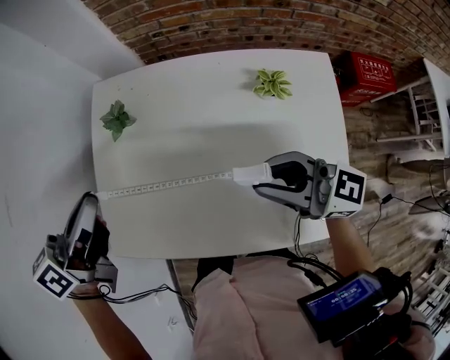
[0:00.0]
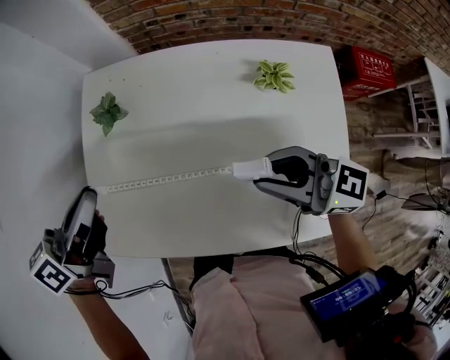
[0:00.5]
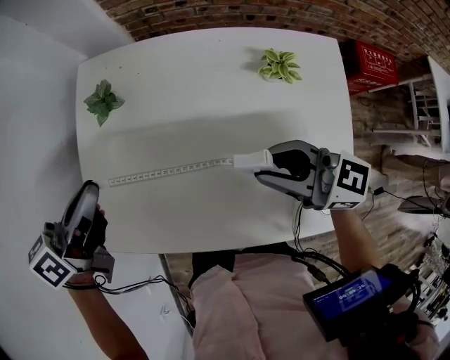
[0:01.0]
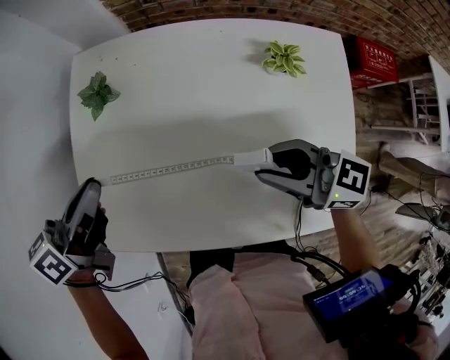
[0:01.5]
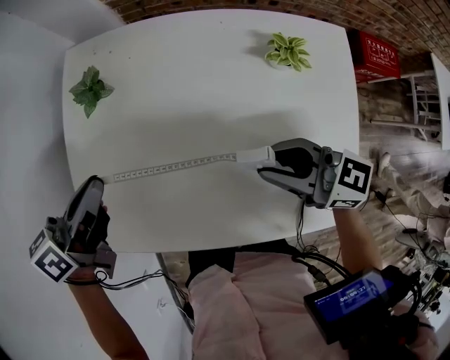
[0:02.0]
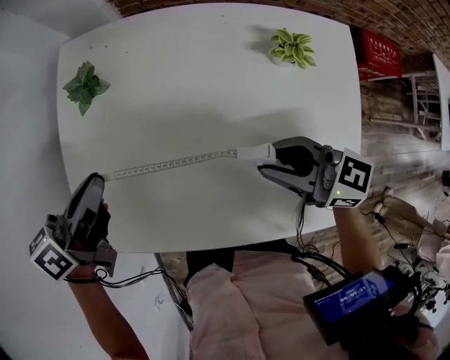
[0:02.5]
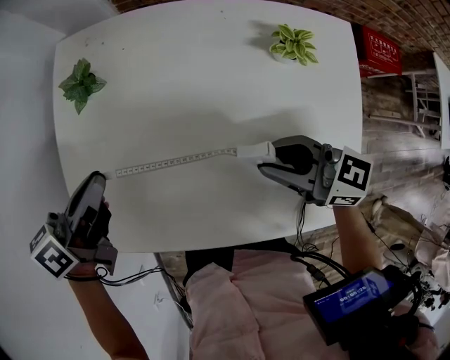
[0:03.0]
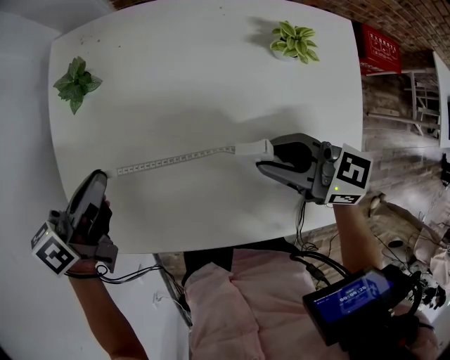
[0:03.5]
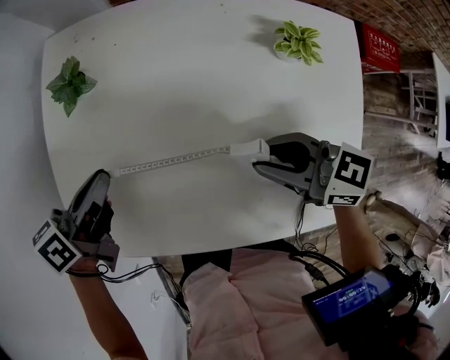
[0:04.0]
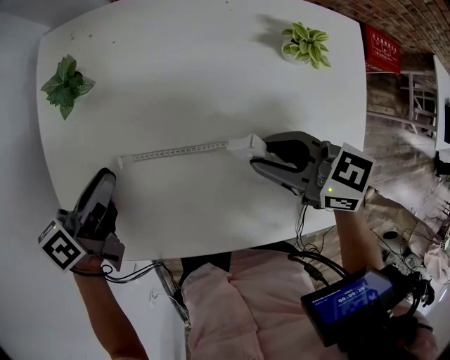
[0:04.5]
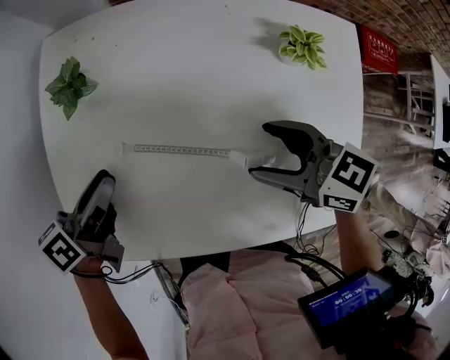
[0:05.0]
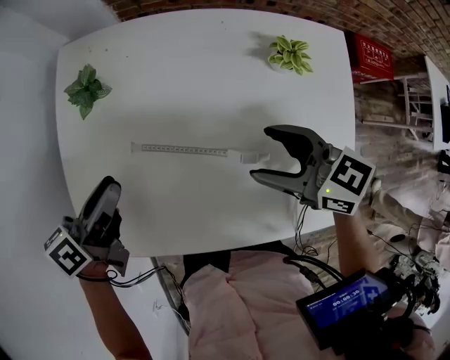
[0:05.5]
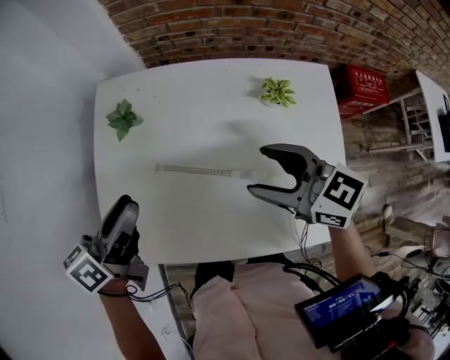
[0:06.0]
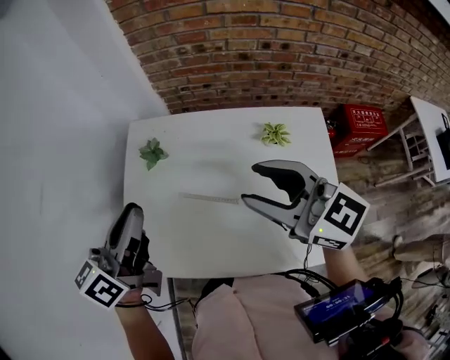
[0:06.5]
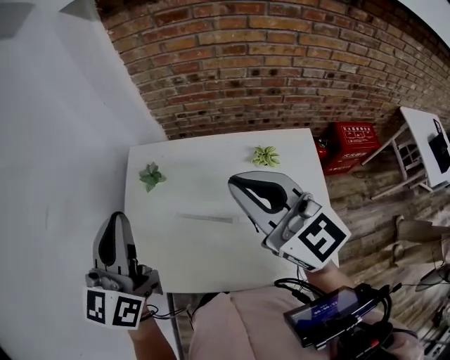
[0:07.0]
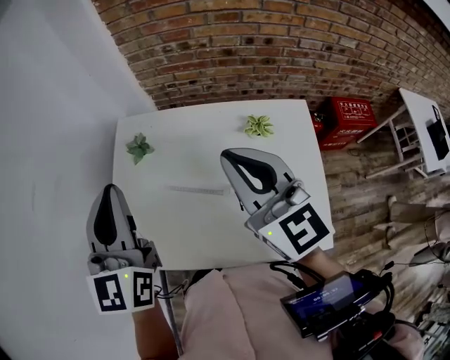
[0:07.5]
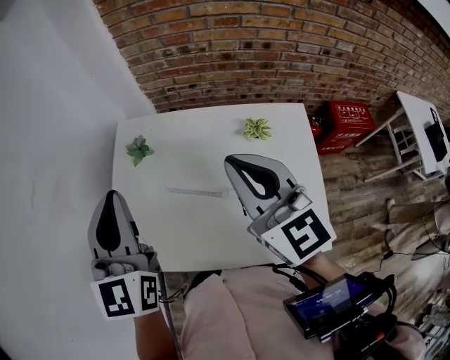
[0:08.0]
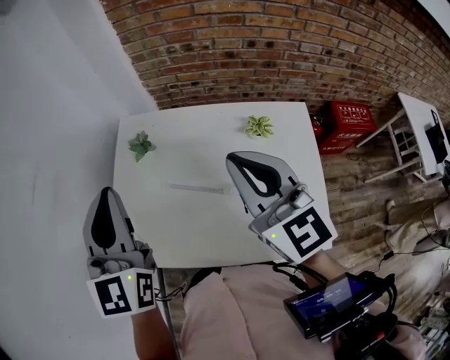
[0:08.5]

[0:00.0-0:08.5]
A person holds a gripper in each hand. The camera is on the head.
0:00.0 to 0:02.0: Both grippers travel together downward, roughly 10 cm.
0:02.0 to 0:04.0: The left gripper shifts about 5 cm downward.
0:04.0 to 0:06.5: The grippers both shift upward by about 25 cm. The left gripper turns by approximately 30 degrees, and opens, then closes once more. The right gripper rotates approximately 30 degrees, and opens, then closes once more.
0:06.5 to 0:08.5: The right gripper rotates some 20 degrees, and closes. Meanwhile the left gripper goes some 5 cm upward, and rotates around the line of its fingers by approximately 40 degrees, clockwise from behind.

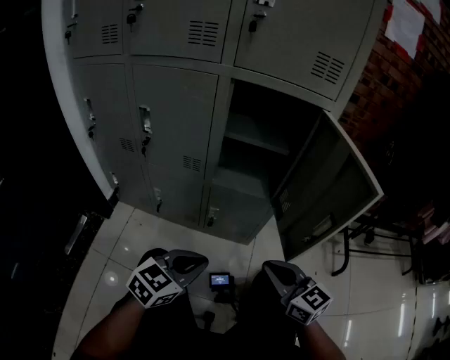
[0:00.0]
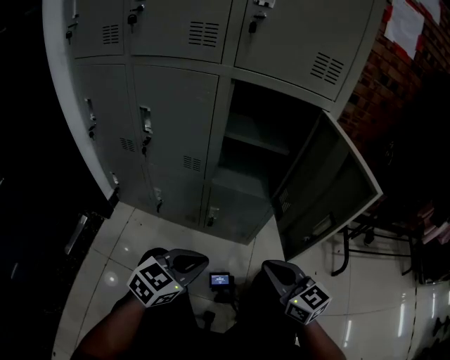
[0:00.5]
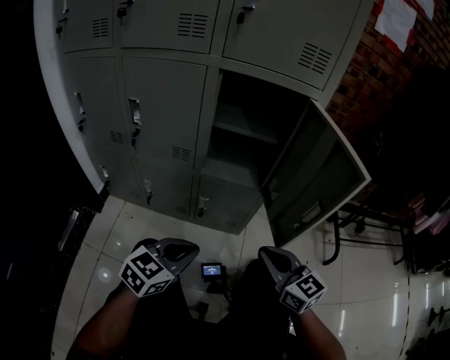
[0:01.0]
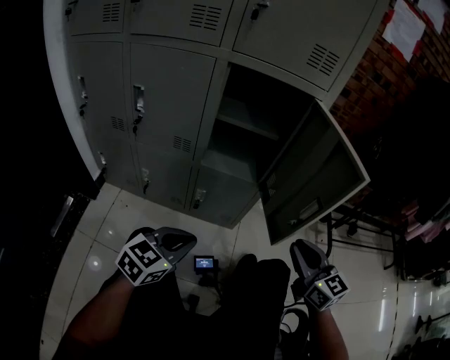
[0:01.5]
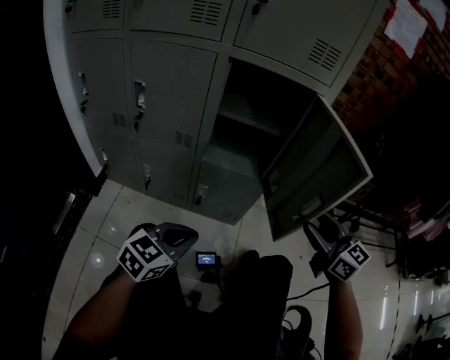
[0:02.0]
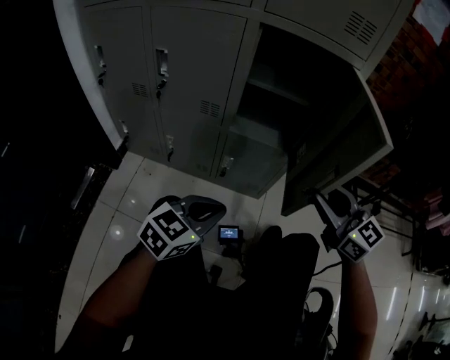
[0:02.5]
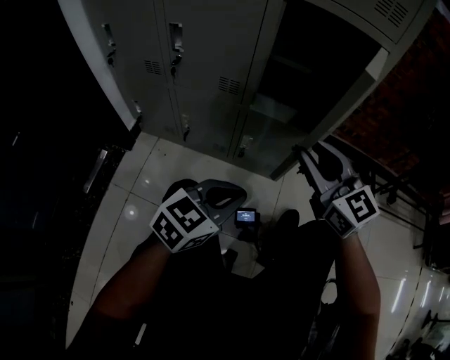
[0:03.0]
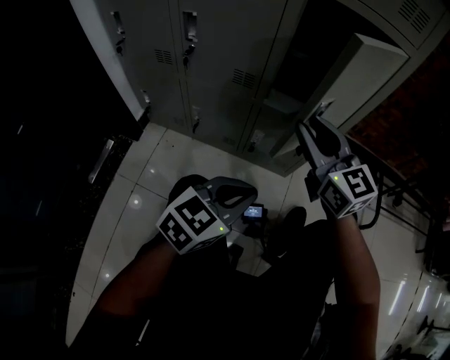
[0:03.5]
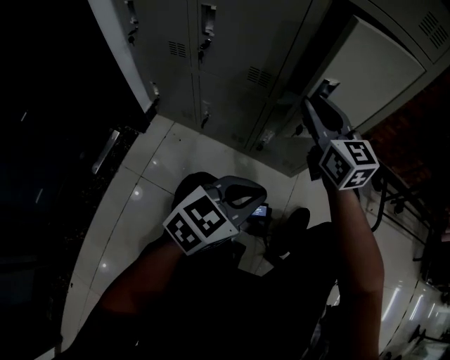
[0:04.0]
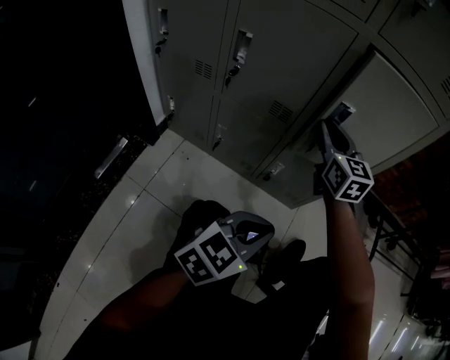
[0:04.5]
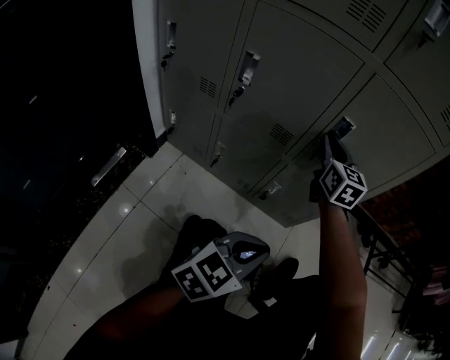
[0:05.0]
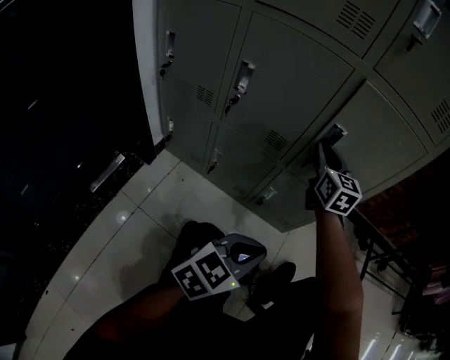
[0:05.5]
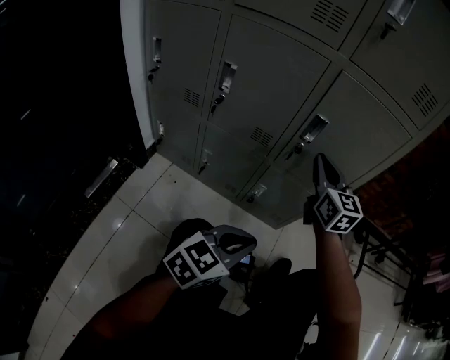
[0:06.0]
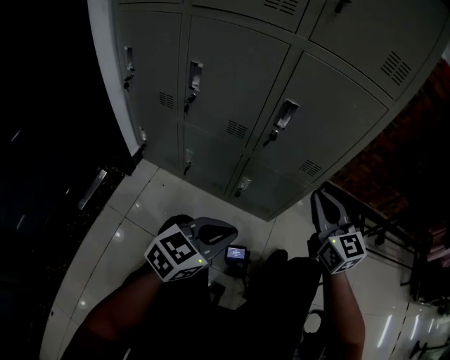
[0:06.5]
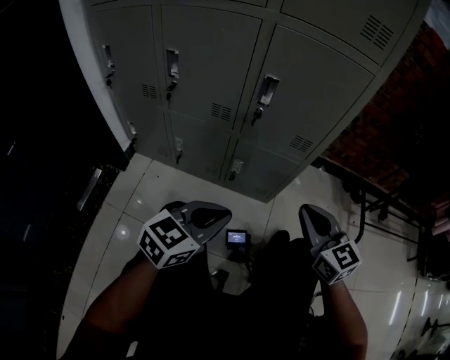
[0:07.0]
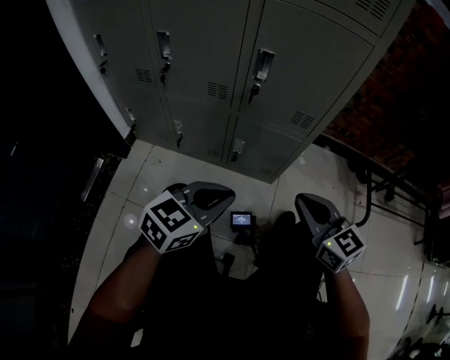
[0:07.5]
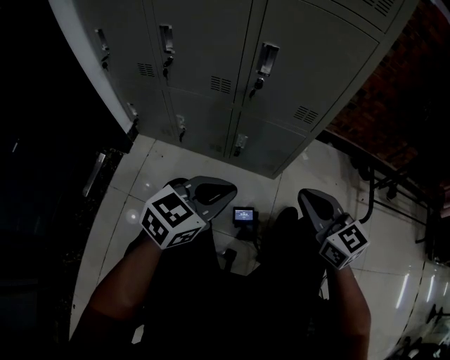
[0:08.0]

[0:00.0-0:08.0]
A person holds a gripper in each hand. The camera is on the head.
0:00.0 to 0:02.0: The right gripper goes roughly 15 cm to the right, upward and forward, and opens up.
0:02.0 to 0:04.0: The right gripper moves to the left and forward, roughly 30 cm, and closes.
0:04.0 to 0:06.0: The right gripper closes its fingers.
0:06.0 to 0:08.0: The right gripper shifts roughly 25 cm backward, to the right and downward, and swivels roughly 20 degrees.

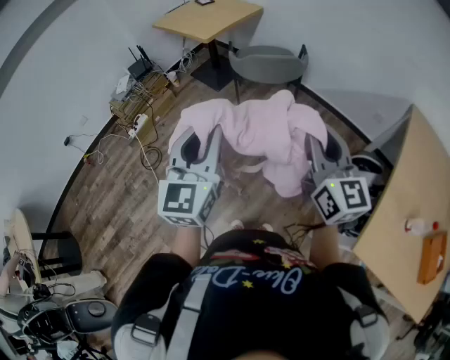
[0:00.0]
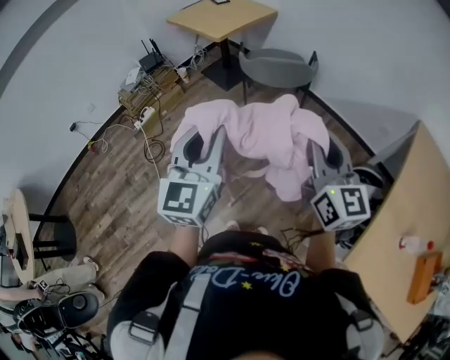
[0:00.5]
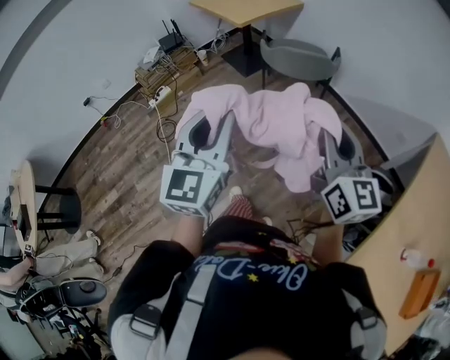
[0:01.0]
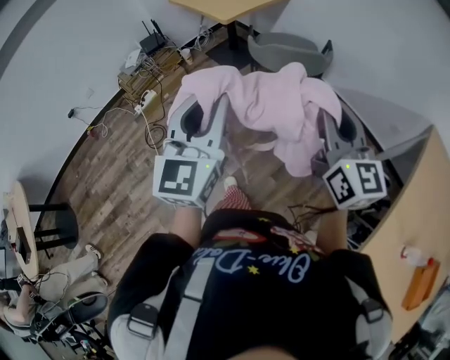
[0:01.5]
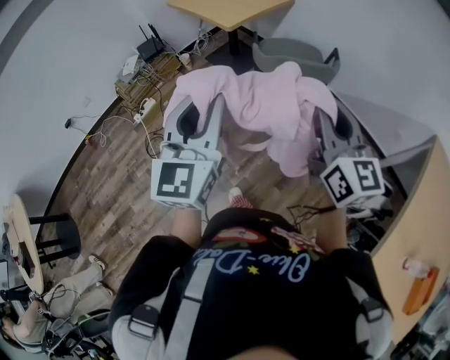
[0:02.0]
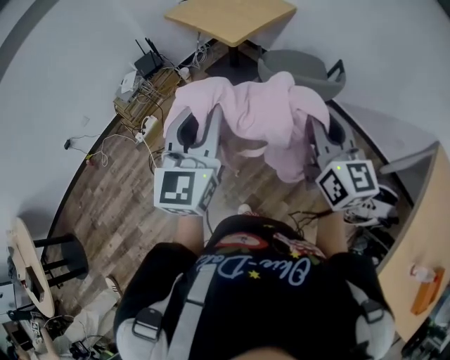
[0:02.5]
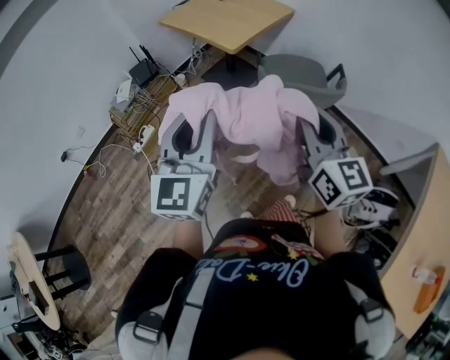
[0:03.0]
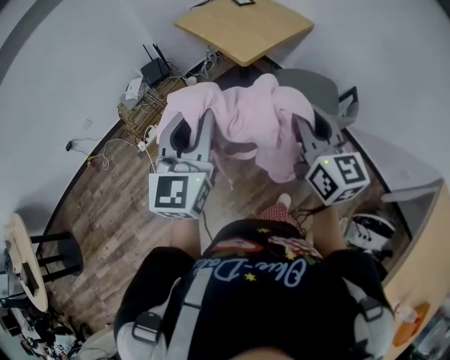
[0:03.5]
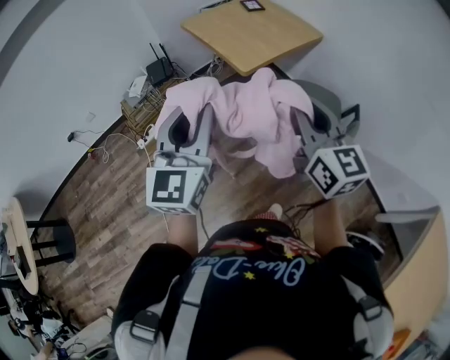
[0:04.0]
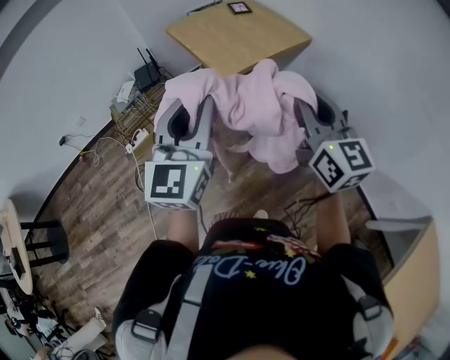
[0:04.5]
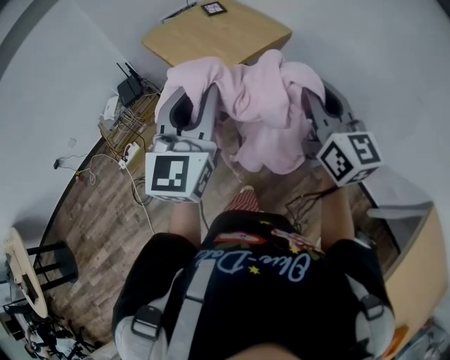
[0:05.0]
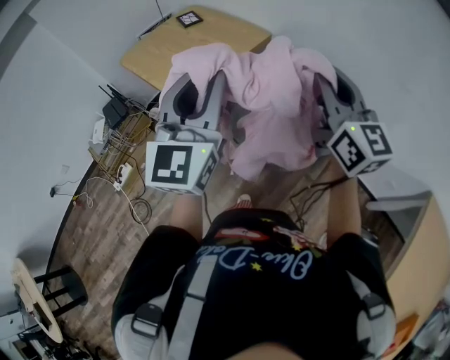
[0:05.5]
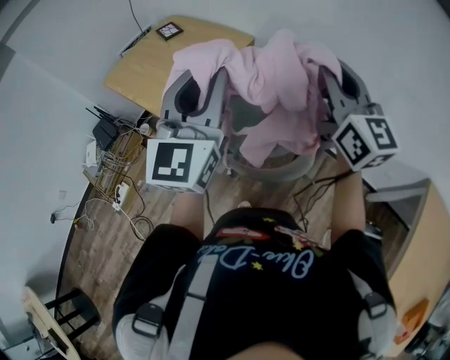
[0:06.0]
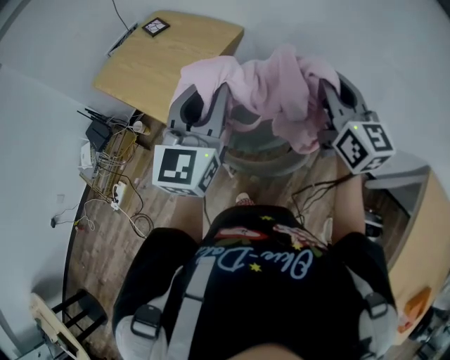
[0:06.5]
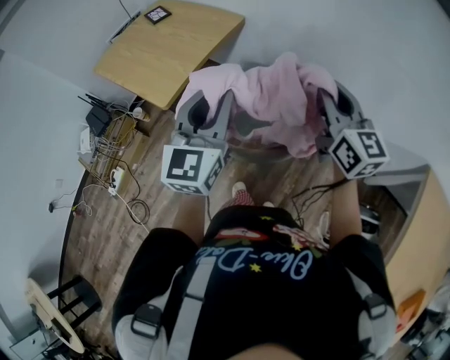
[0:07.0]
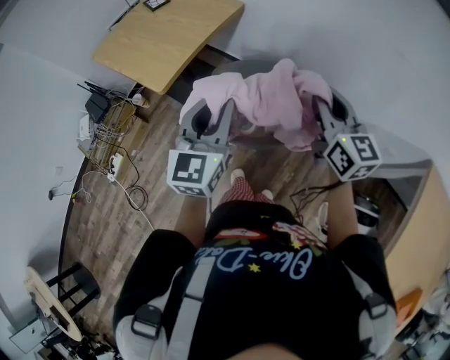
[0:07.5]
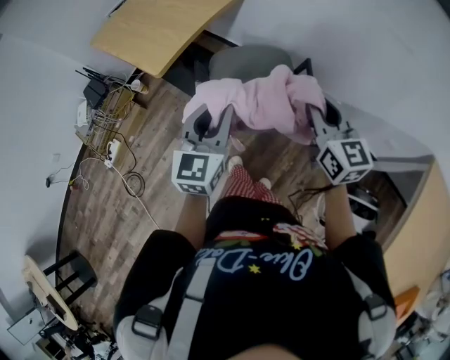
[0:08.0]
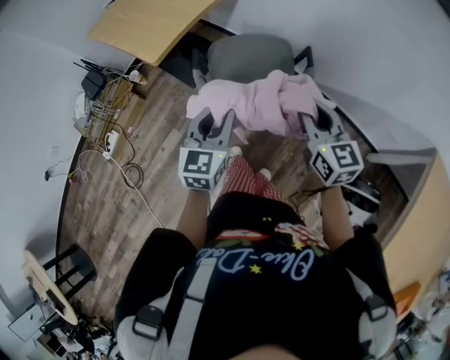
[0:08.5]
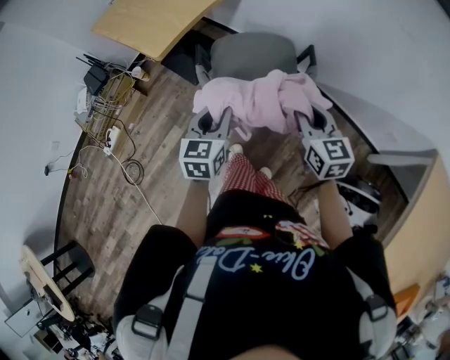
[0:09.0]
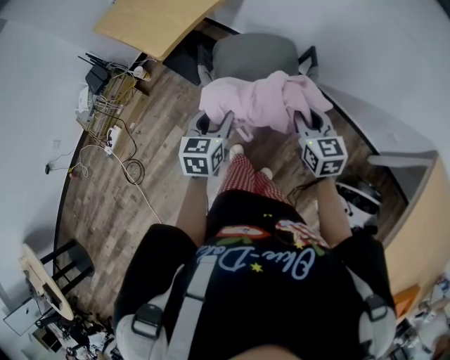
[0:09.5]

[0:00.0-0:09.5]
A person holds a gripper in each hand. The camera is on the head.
0:00.0 to 0:02.0: The grippers both shift forward and to the left by some 15 cm.
0:02.0 to 0:04.0: Both grippers travel together forward, some 25 cm.
0:04.0 to 0:05.5: Both grippers travel together to the right and forward, about 30 cm.
0:05.5 to 0:07.5: The two grippers go some 20 cm downward and to the right.
0:07.5 to 0:09.5: The left gripper goes about 20 cm downward, rotates approximately 30 degrees, and opens its fingers, while the right gripper heads downward and backward, covering roughly 20 cm.

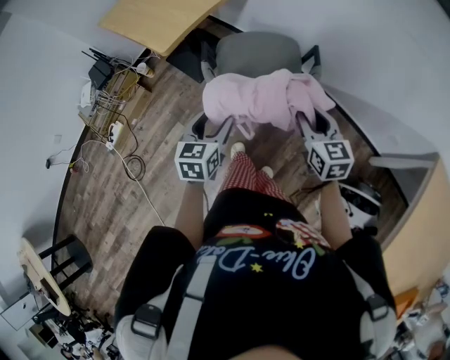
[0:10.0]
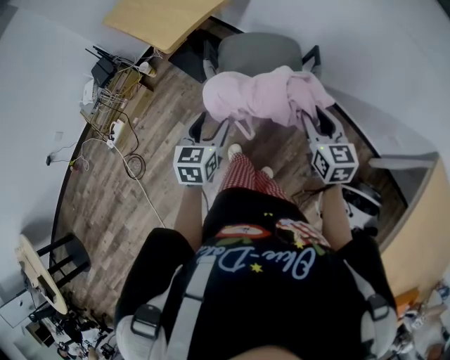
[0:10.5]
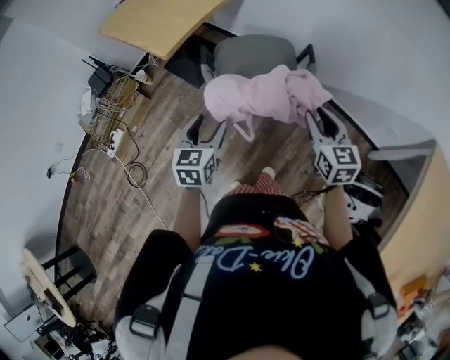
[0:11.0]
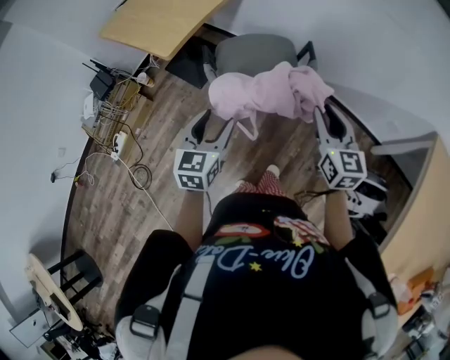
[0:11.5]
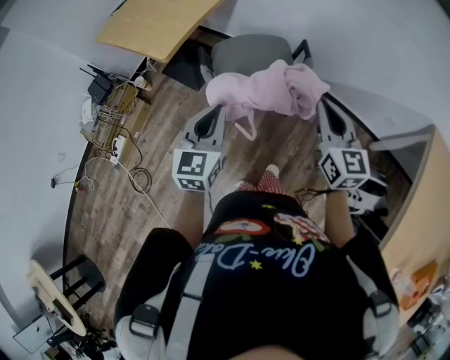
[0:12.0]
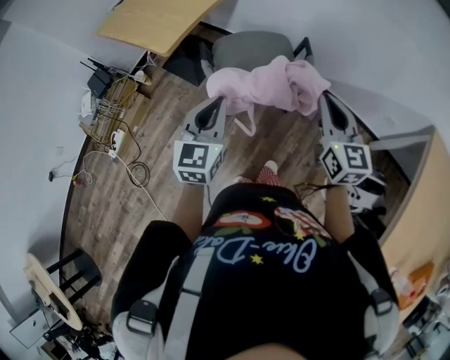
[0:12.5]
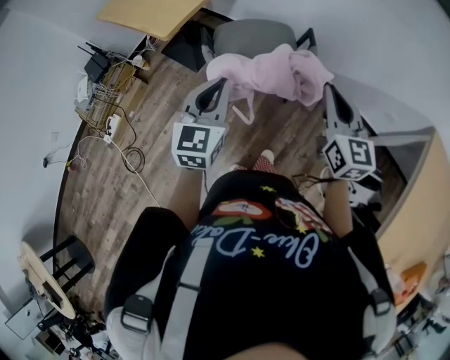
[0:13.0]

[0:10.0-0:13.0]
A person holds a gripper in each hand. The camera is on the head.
0:10.0 to 0:11.5: The right gripper moves upward and backward, roughly 10 cm, while the left gripper shifts about 5 cm upward.
0:11.5 to 0:13.0: The grippers both shift upward by some 5 cm. The left gripper closes up. Meanwhile the right gripper closes its fingers.
